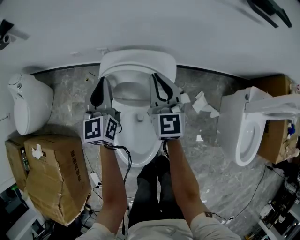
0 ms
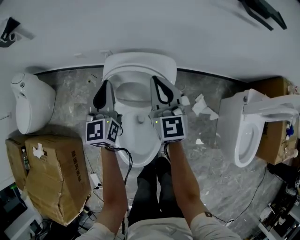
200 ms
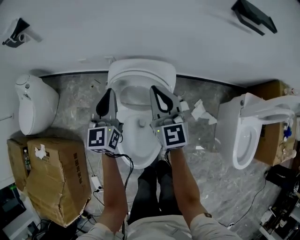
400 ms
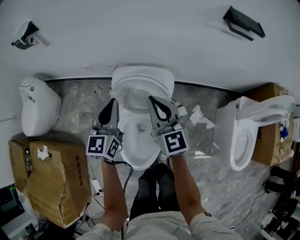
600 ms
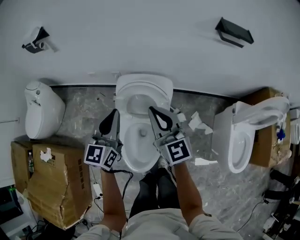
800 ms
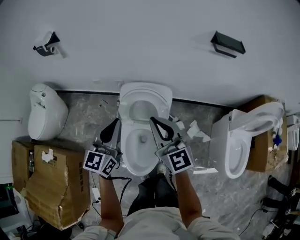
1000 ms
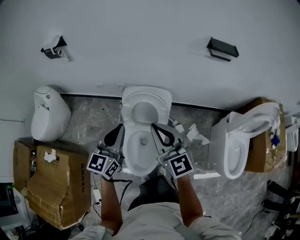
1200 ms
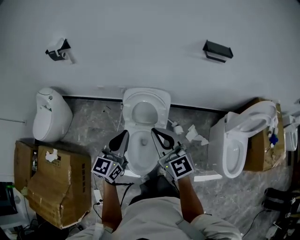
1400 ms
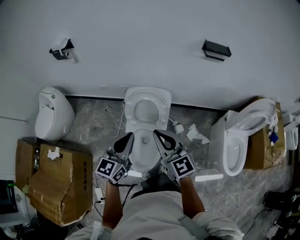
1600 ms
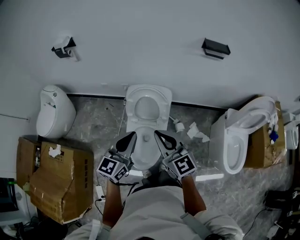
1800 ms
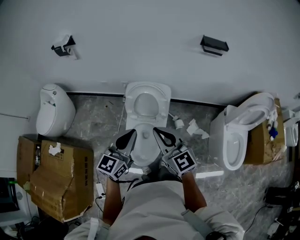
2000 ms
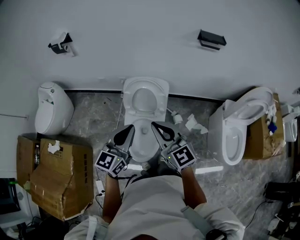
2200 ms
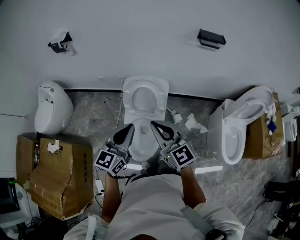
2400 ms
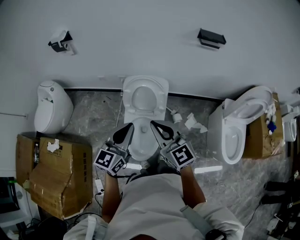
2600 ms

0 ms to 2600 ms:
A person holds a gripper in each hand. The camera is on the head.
0 ms to 1200 ms: The two grippers go roughly 35 cm upward and backward. The right gripper changes its angle by some 20 degrees.
1200 ms to 2600 ms: Both grippers move backward, about 10 cm.

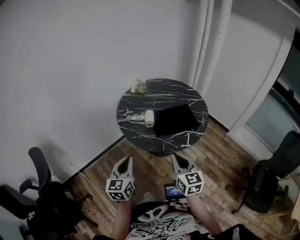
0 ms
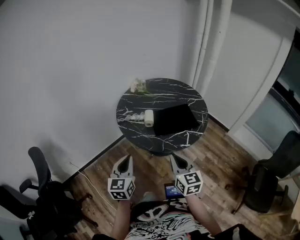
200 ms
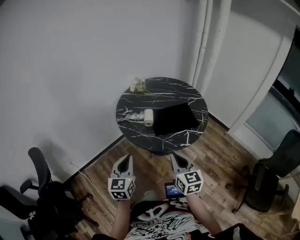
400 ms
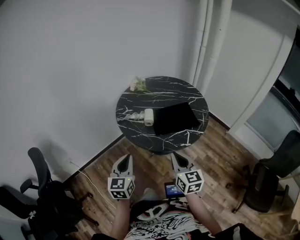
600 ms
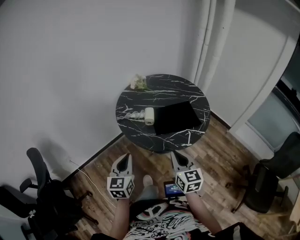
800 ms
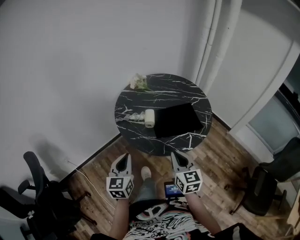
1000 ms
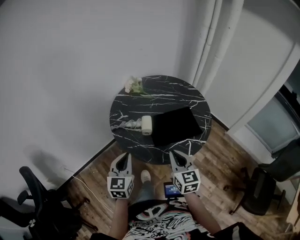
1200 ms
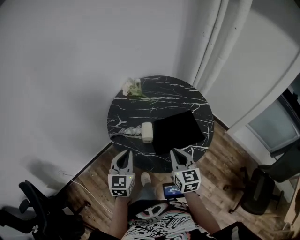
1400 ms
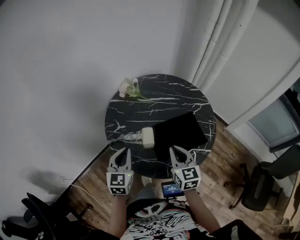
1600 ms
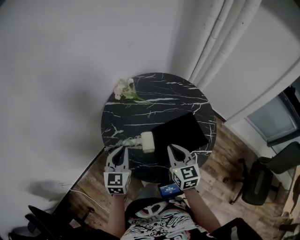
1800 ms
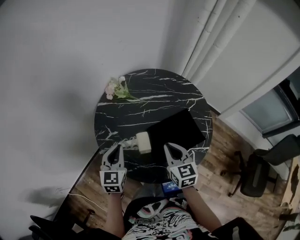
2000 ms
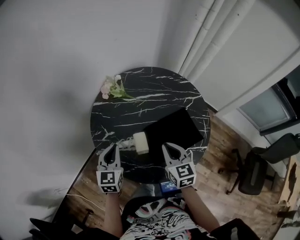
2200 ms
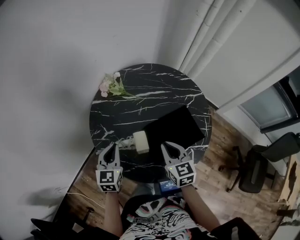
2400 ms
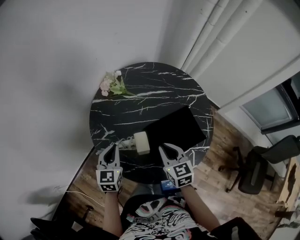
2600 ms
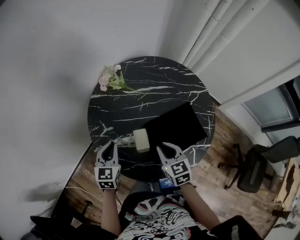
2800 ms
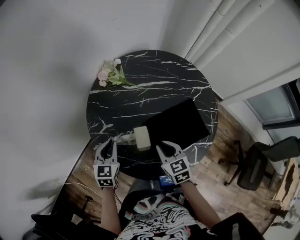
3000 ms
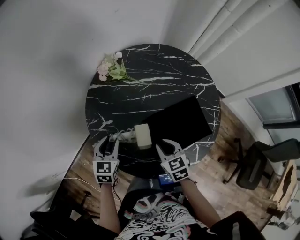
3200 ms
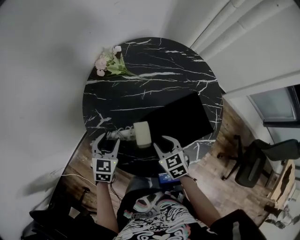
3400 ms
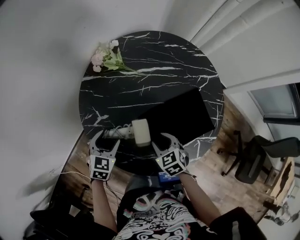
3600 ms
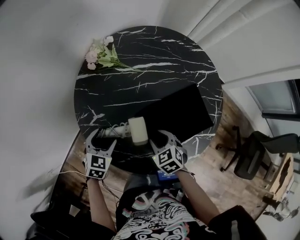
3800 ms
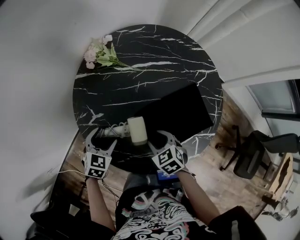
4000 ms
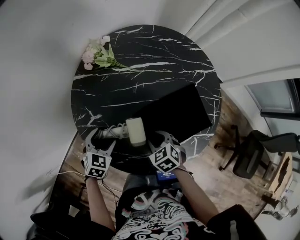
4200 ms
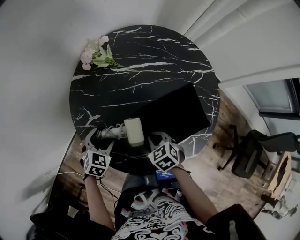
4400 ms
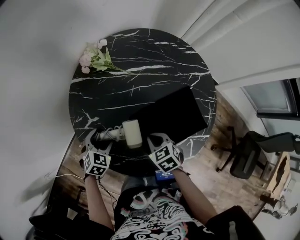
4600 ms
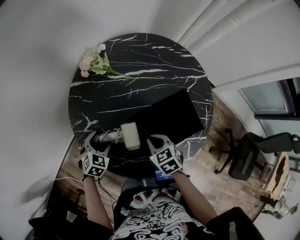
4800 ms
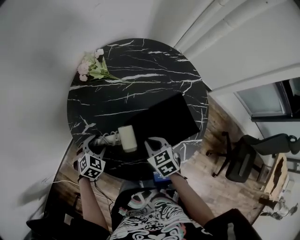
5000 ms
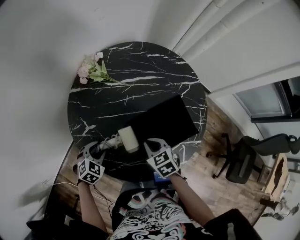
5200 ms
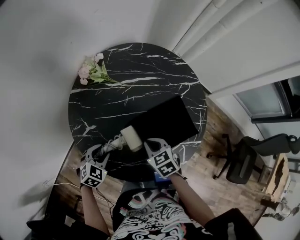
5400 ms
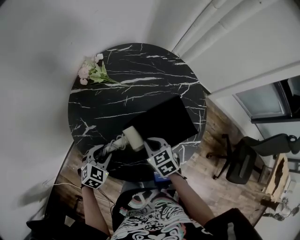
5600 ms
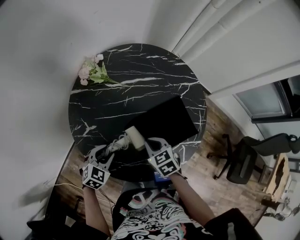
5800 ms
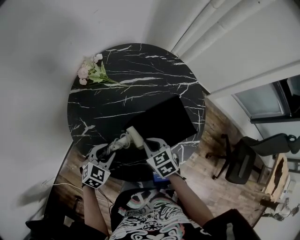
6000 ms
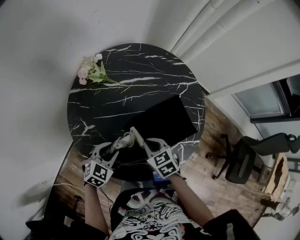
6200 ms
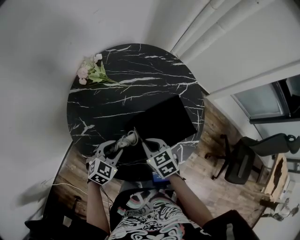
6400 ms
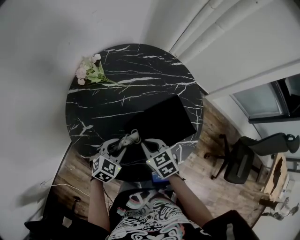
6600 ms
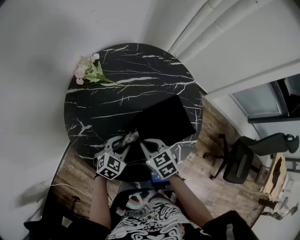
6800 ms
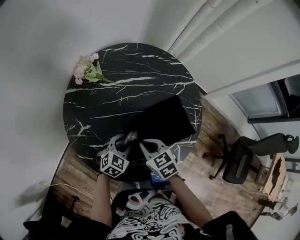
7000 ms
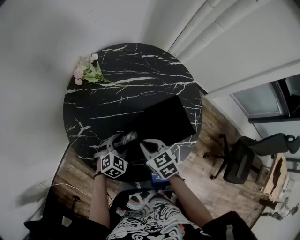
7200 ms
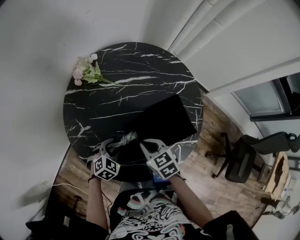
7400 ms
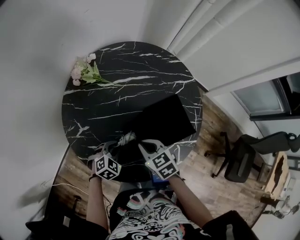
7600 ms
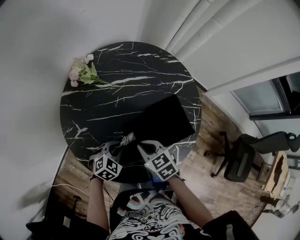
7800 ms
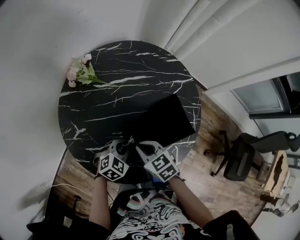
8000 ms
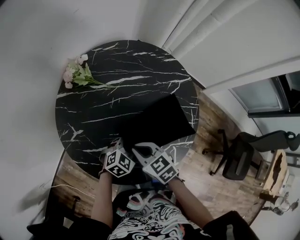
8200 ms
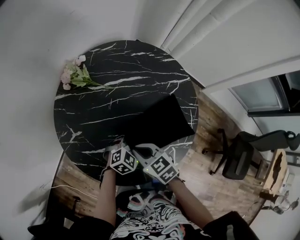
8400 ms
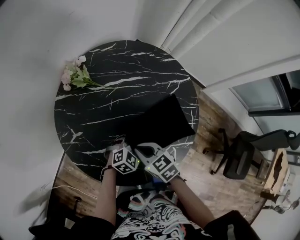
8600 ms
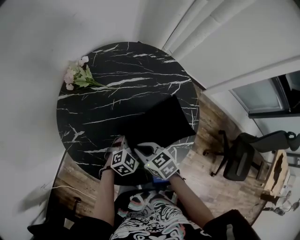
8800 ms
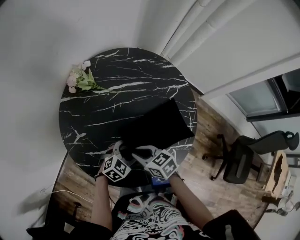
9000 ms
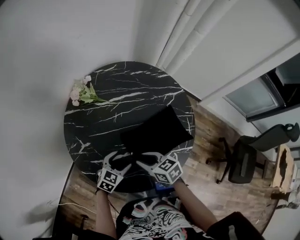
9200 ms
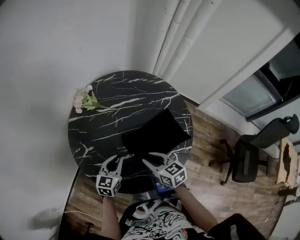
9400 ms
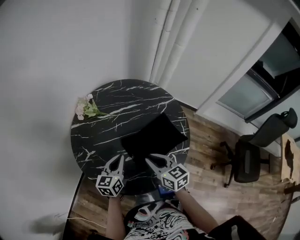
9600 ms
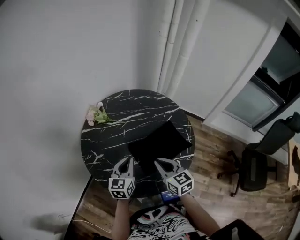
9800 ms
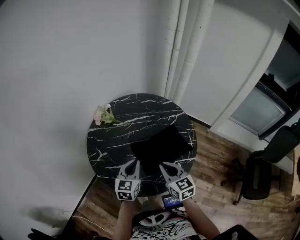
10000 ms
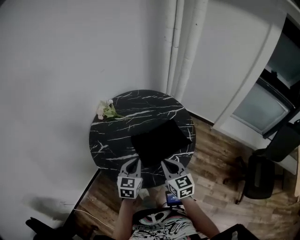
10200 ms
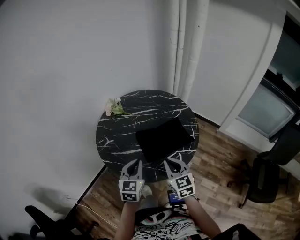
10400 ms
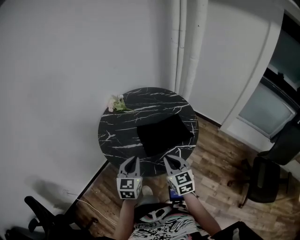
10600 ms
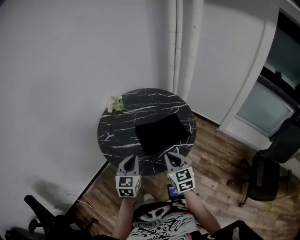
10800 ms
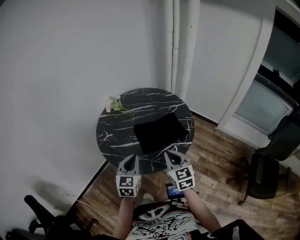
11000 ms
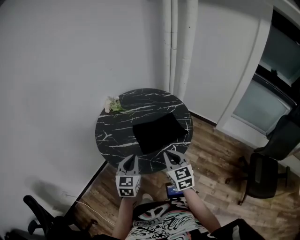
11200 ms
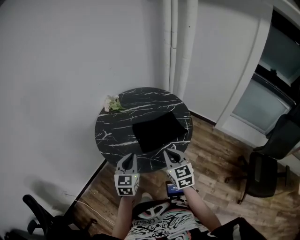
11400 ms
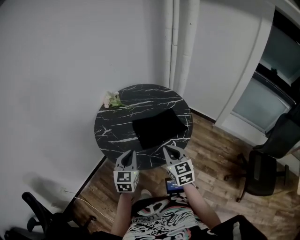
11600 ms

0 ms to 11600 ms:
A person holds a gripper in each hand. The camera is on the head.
0 ms to 1400 ms: The grippers both shift forward by about 20 cm.
1400 ms to 2800 ms: The two grippers go about 20 cm forward and downward.
2800 ms to 4400 ms: Both grippers travel together downward, roughly 15 cm. The right gripper swivels approximately 30 degrees, and opens, then closes once more. Meanwhile the left gripper rotates approximately 30 degrees, and opens.
4400 ms to 5800 ms: The left gripper moves some 5 cm, and closes. Meanwhile the right gripper moves upward, approximately 5 cm.
5800 ms to 7200 ms: The left gripper goes approximately 10 cm to the right.
7200 ms to 8800 ms: The left gripper shifts some 10 cm to the right, and closes and opens again.
8800 ms to 10200 ms: The right gripper travels upward, backward and to the right by about 20 cm, and rotates roughly 40 degrees, while the left gripper goes roughly 20 cm upward and backward, swivels approximately 50 degrees, and closes its fingers.
10200 ms to 11600 ms: The grippers both shift backward by approximately 10 cm.

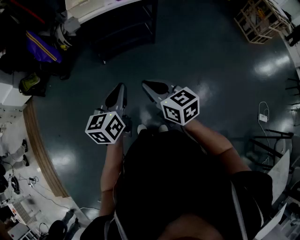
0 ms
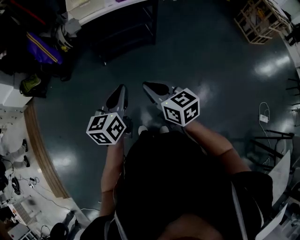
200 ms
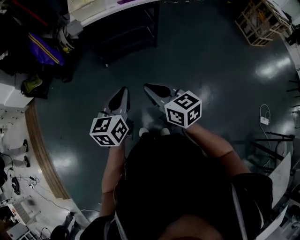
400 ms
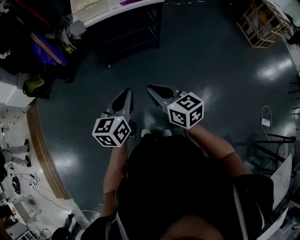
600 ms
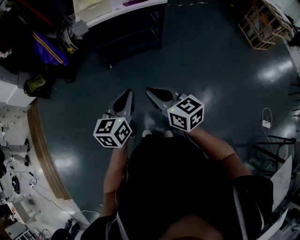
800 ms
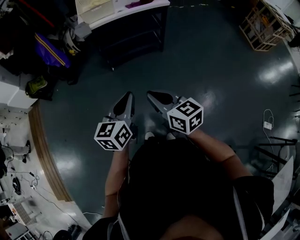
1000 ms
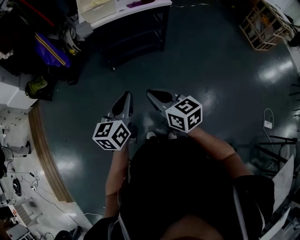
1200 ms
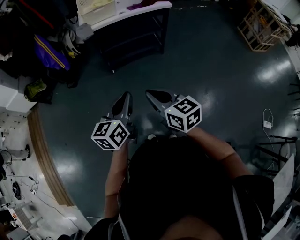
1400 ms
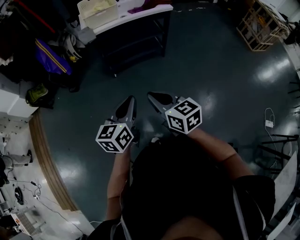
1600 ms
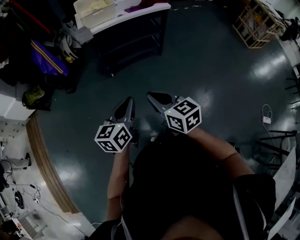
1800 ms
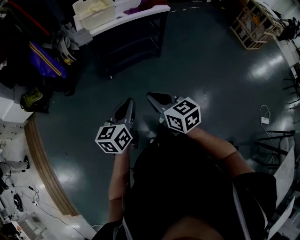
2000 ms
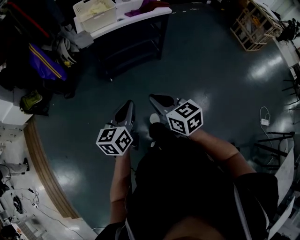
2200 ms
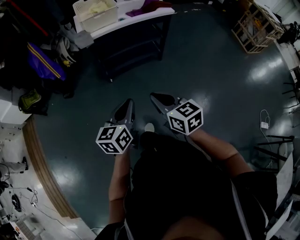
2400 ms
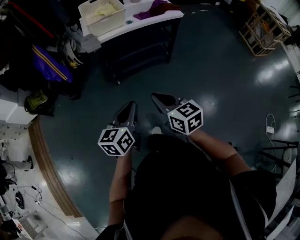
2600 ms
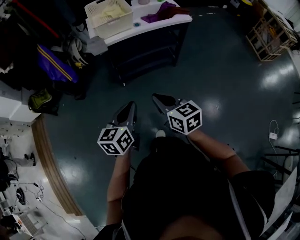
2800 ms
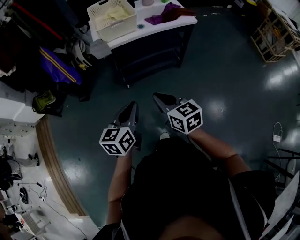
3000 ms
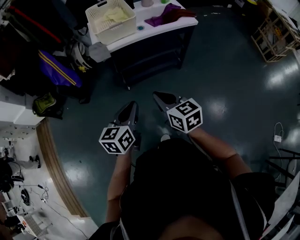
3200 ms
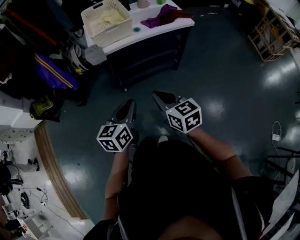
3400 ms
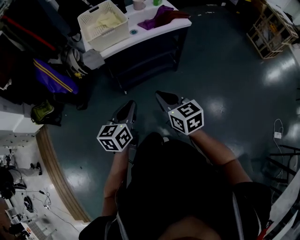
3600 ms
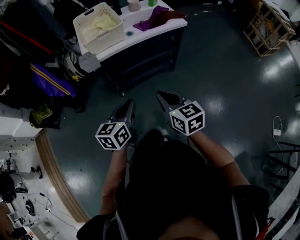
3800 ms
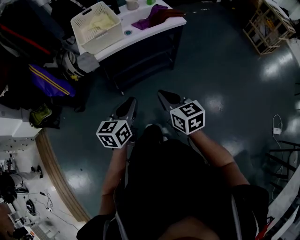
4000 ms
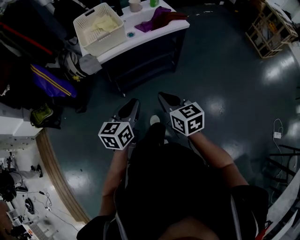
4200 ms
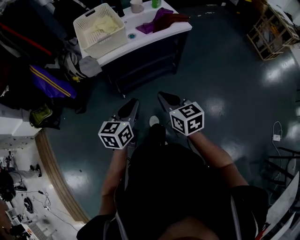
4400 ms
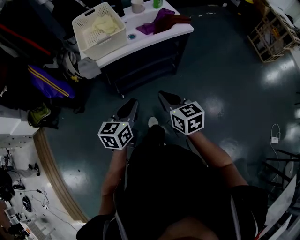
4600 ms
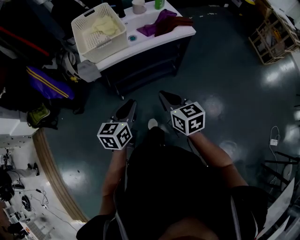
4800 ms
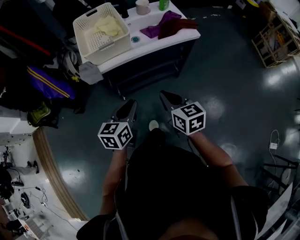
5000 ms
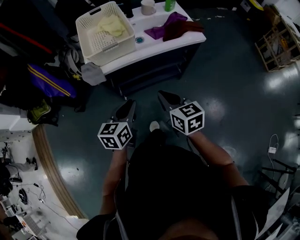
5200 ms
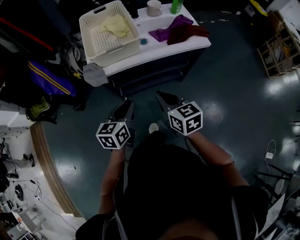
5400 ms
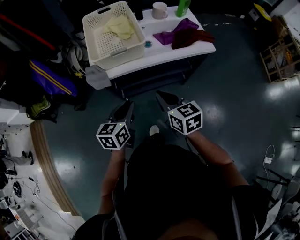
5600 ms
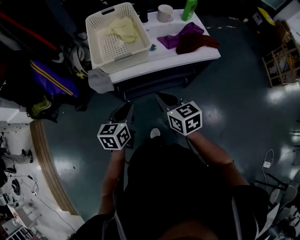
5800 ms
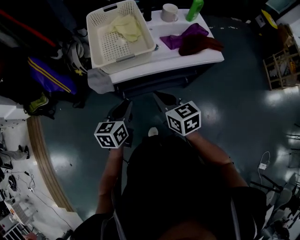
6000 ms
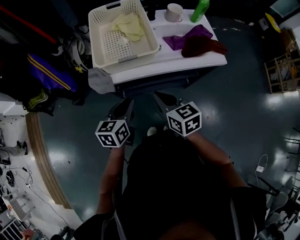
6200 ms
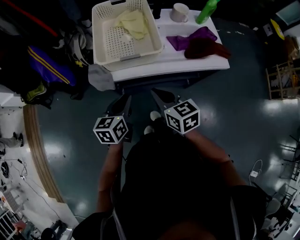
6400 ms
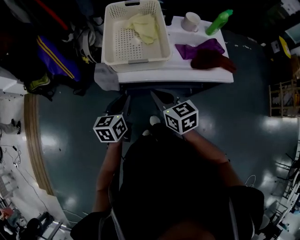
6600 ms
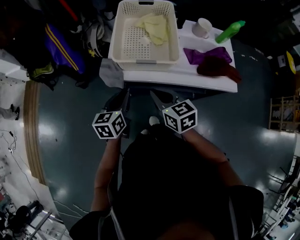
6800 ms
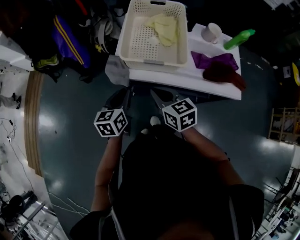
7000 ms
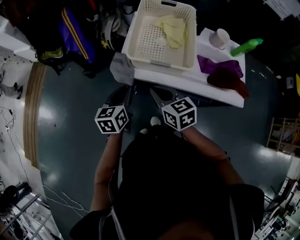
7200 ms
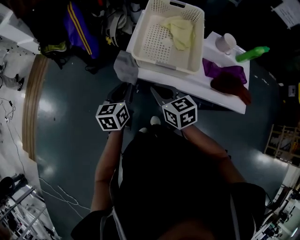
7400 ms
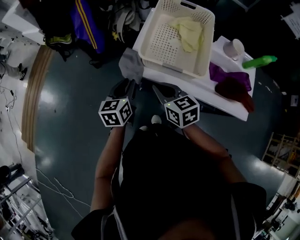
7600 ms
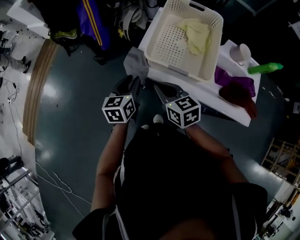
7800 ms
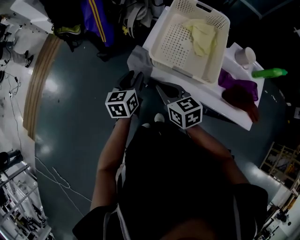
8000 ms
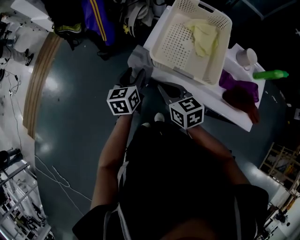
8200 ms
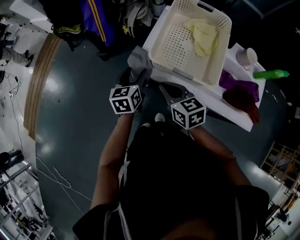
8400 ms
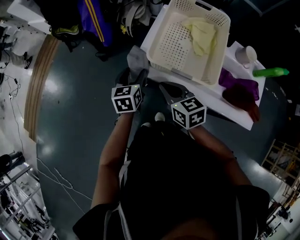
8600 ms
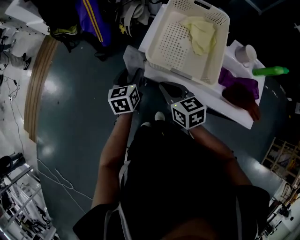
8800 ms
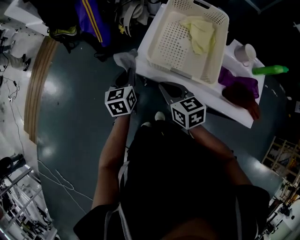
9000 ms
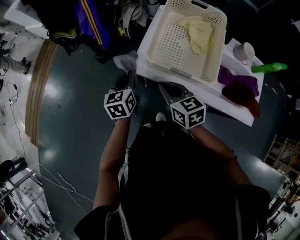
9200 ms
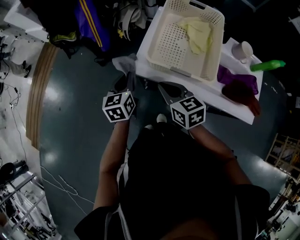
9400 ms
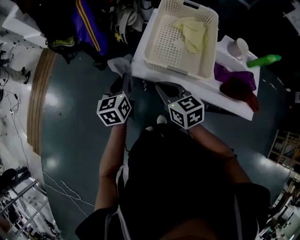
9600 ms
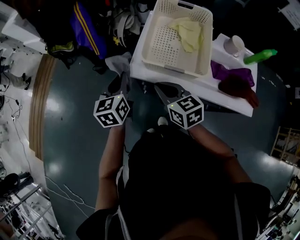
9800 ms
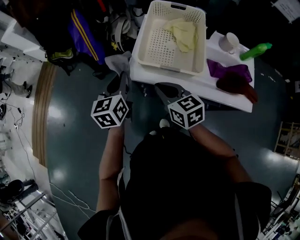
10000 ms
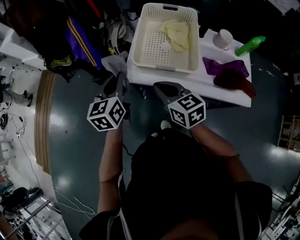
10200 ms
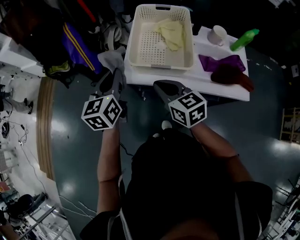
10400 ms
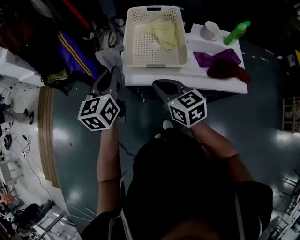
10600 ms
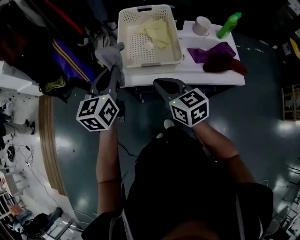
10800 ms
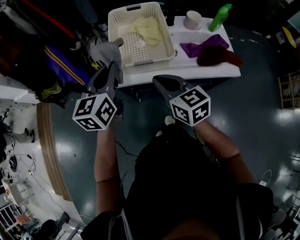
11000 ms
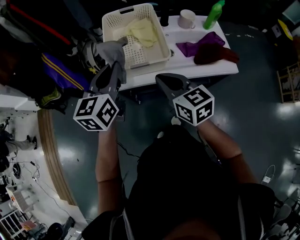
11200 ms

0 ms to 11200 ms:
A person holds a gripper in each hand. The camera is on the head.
0 ms to 1600 ms: The grippers both shift to the left by about 10 cm.
1600 ms to 3200 ms: Both grippers travel together forward, some 25 cm.
3200 ms to 4800 ms: The left gripper heads forward, covering about 15 cm, while the right gripper moves forward and to the right, about 15 cm.
4800 ms to 6400 ms: The two grippers go about 20 cm forward and to the left.
6400 ms to 8000 ms: The left gripper changes place by some 15 cm, and swivels approximately 30 degrees. Meanwhile the right gripper moves roughly 15 cm, and turns by roughly 30 degrees.
8000 ms to 9600 ms: The left gripper moves some 5 cm, and closes.
9600 ms to 11200 ms: The left gripper shifts about 20 cm upward, and swivels roughly 40 degrees; the right gripper ends up some 15 cm from where it was, and rotates approximately 30 degrees.
